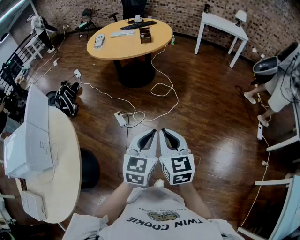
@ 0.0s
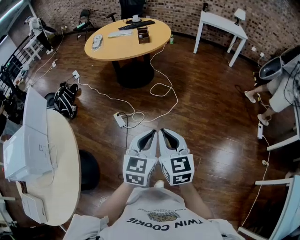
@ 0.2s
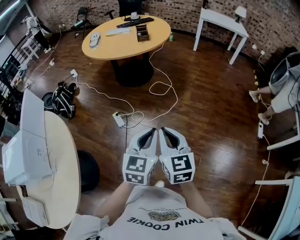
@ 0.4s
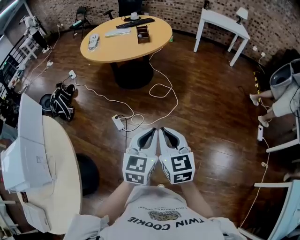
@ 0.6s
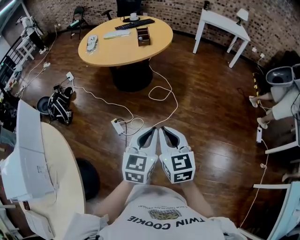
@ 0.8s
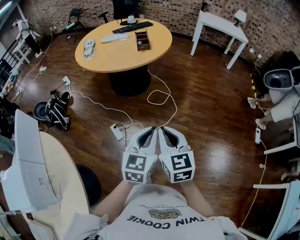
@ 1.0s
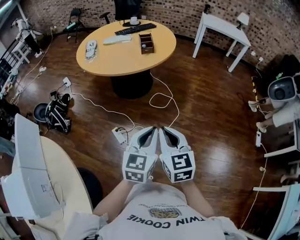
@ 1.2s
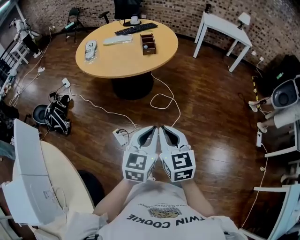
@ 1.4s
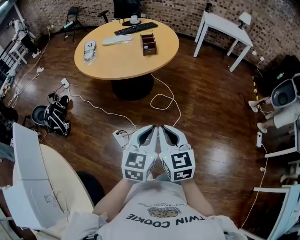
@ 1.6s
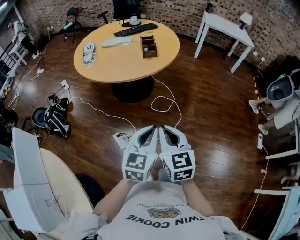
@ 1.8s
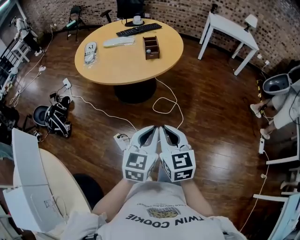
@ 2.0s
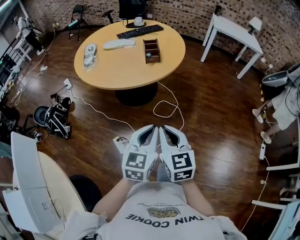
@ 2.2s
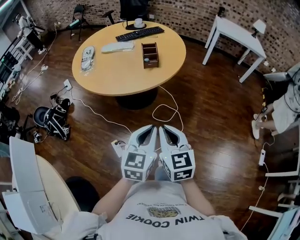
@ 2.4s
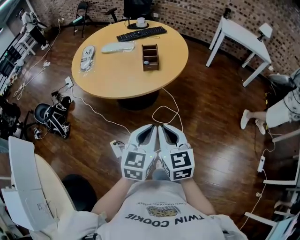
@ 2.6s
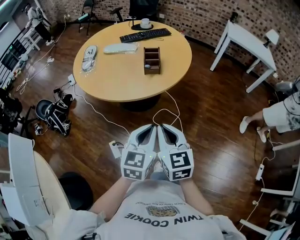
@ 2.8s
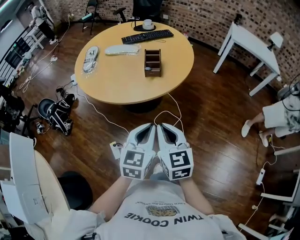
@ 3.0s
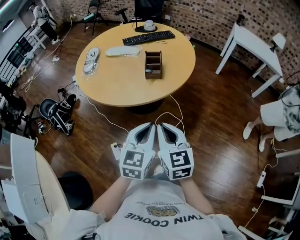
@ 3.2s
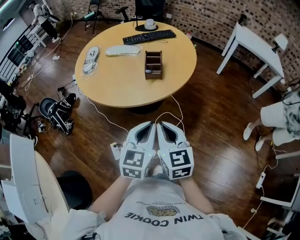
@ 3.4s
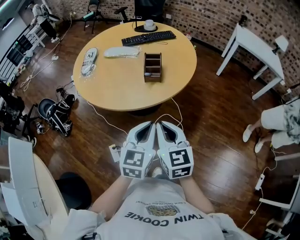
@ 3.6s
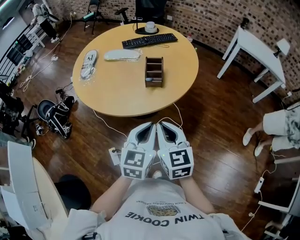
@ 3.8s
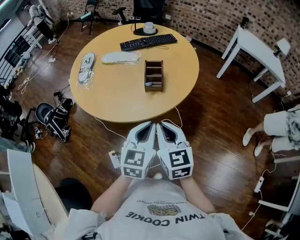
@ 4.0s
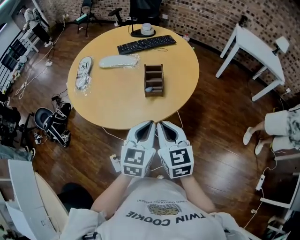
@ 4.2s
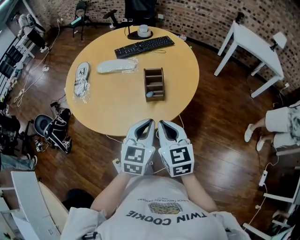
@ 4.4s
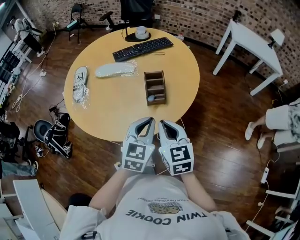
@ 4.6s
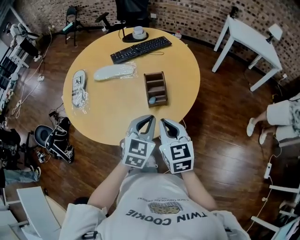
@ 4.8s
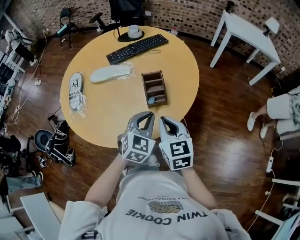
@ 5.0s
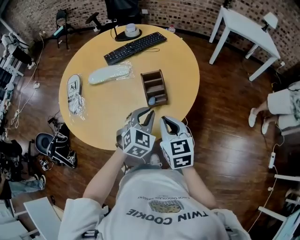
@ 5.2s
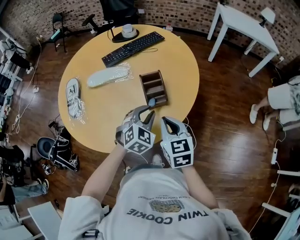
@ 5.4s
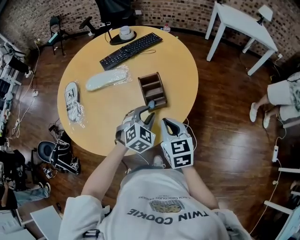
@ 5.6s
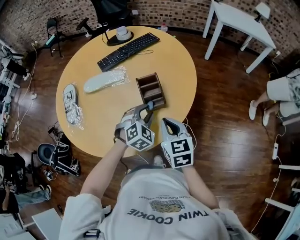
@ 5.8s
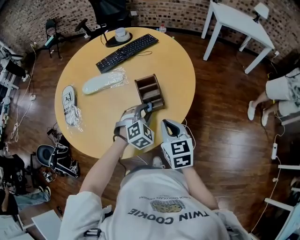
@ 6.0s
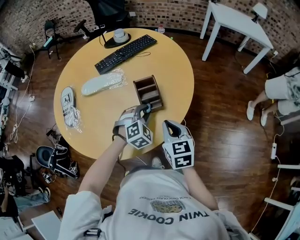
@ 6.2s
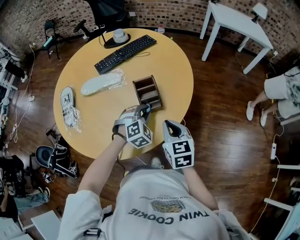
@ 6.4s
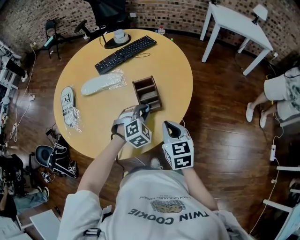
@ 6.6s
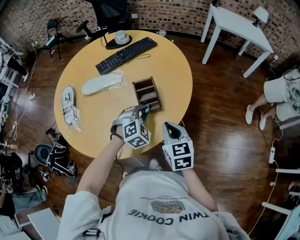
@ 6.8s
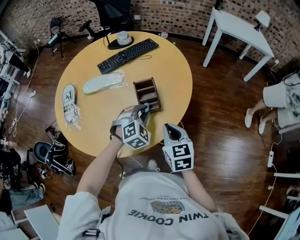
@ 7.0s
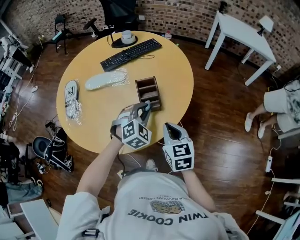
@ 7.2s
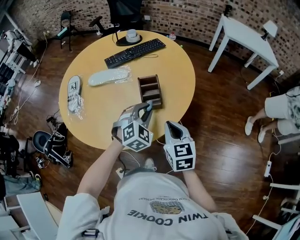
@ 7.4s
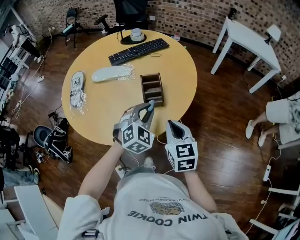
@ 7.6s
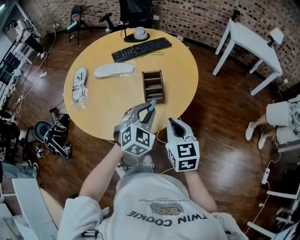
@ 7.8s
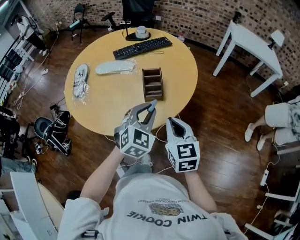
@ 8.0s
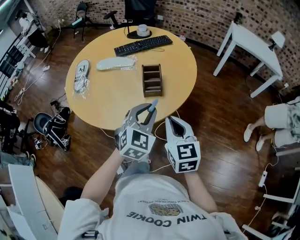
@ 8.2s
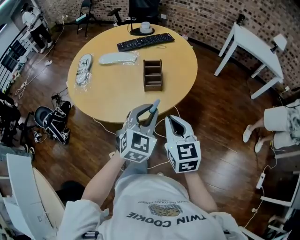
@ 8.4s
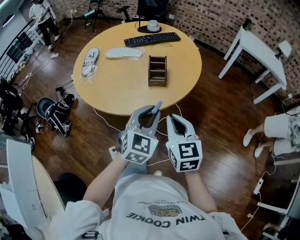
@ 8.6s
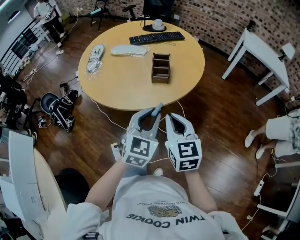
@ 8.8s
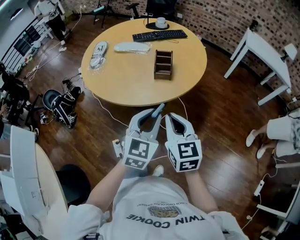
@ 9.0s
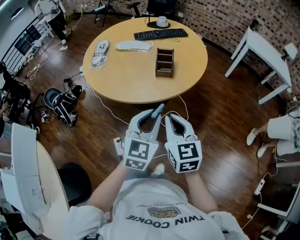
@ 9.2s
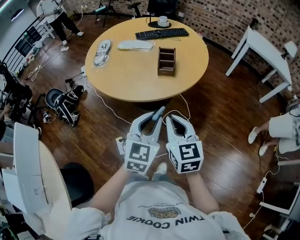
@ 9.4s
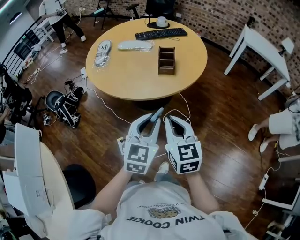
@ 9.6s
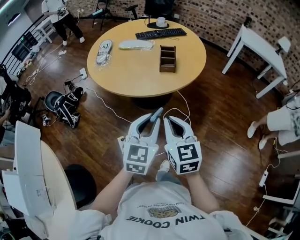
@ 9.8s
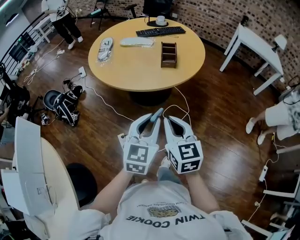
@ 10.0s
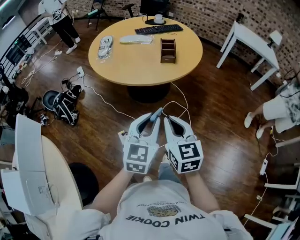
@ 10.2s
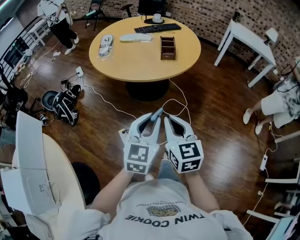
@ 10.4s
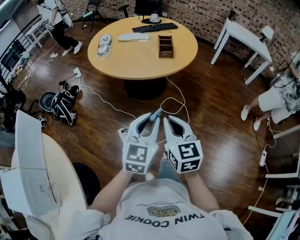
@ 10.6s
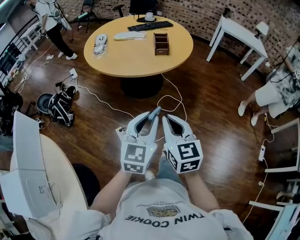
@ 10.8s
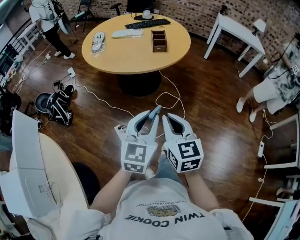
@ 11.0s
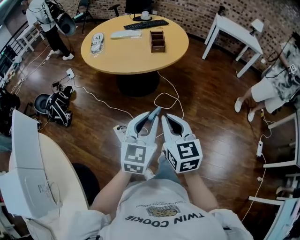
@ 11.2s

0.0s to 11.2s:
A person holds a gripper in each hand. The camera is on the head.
0.0s to 1.6s: The right gripper heads forward and to the left, covering about 35 cm, while the left gripper shifts roughly 30 cm forward.
1.6s to 3.2s: The grippers both shift forward by approximately 30 cm.
3.2s to 4.8s: Both grippers travel together forward, about 25 cm.
4.8s to 6.4s: The left gripper heads downward and forward, covering some 15 cm, and twists about 40 degrees clockwise, seen from behind. The right gripper is displaced downward and forward by roughly 10 cm.
6.4s to 8.0s: The right gripper shifts roughly 10 cm backward and upward. The left gripper goes about 20 cm upward and backward, and swivels about 30 degrees.
8.0s to 9.6s: The grippers both shift backward by about 20 cm. The left gripper changes its angle by some 30 degrees.
9.6s to 11.2s: The grippers both shift backward by approximately 25 cm.

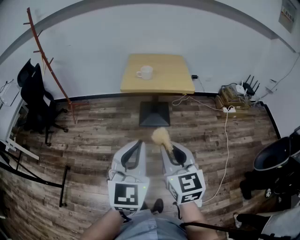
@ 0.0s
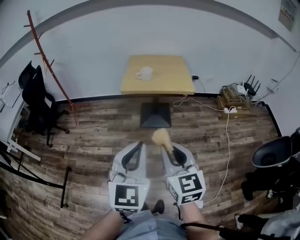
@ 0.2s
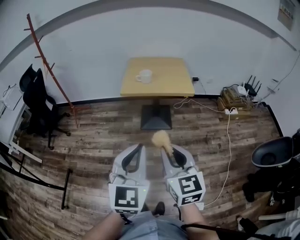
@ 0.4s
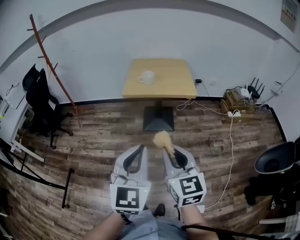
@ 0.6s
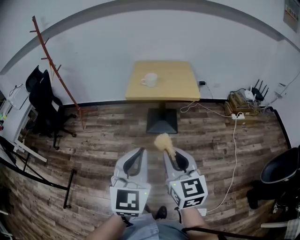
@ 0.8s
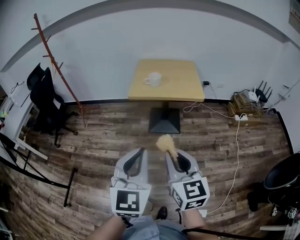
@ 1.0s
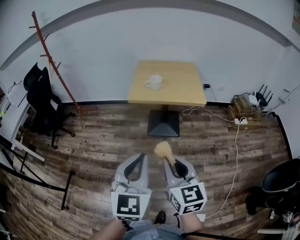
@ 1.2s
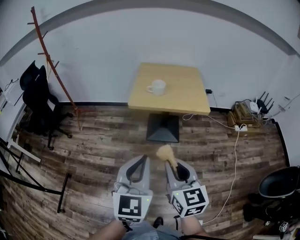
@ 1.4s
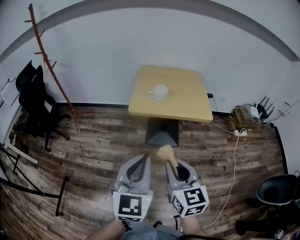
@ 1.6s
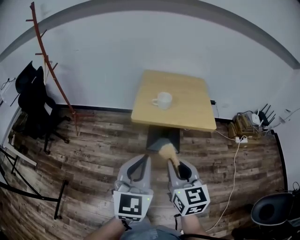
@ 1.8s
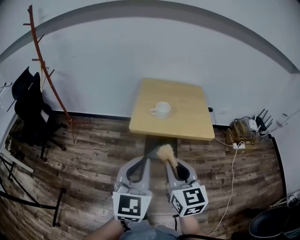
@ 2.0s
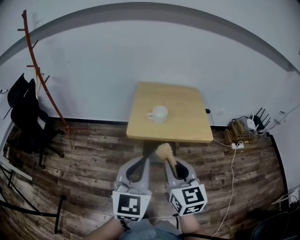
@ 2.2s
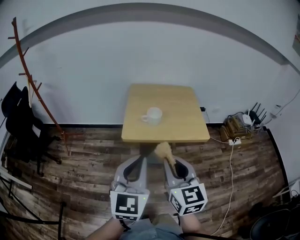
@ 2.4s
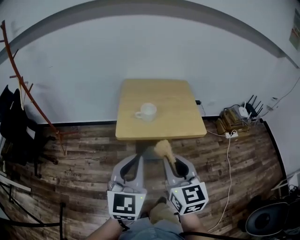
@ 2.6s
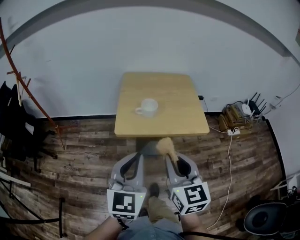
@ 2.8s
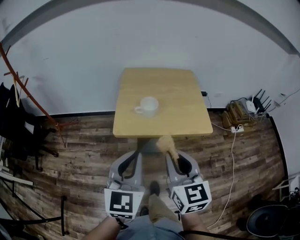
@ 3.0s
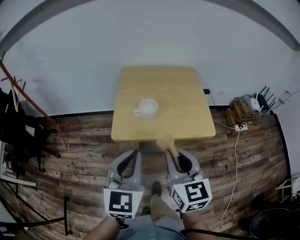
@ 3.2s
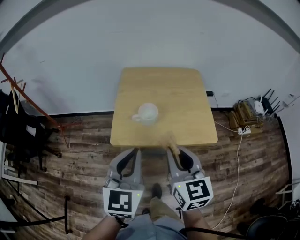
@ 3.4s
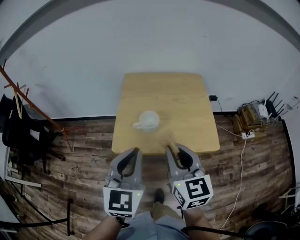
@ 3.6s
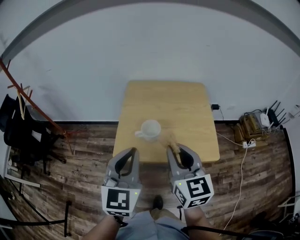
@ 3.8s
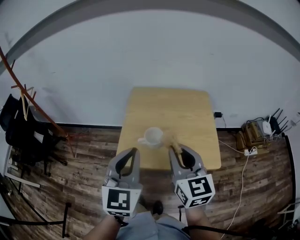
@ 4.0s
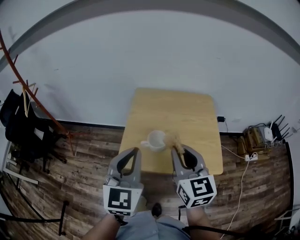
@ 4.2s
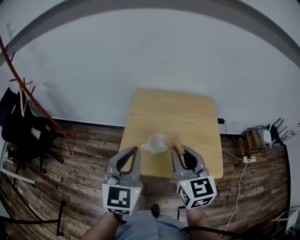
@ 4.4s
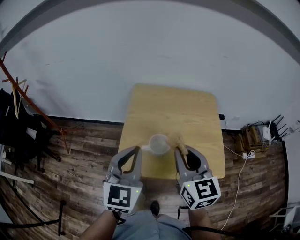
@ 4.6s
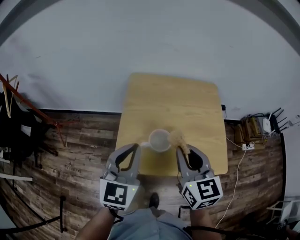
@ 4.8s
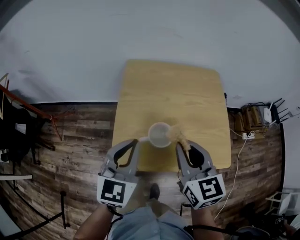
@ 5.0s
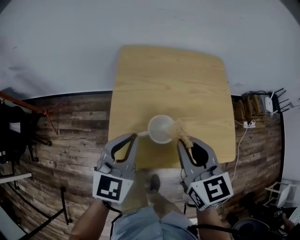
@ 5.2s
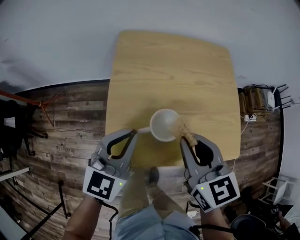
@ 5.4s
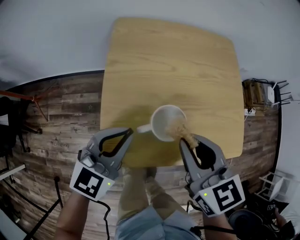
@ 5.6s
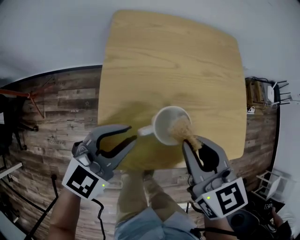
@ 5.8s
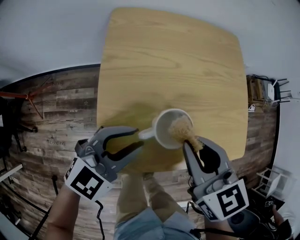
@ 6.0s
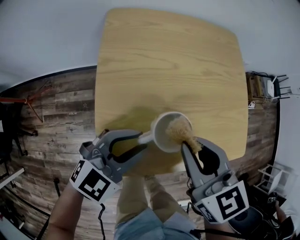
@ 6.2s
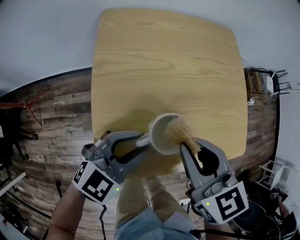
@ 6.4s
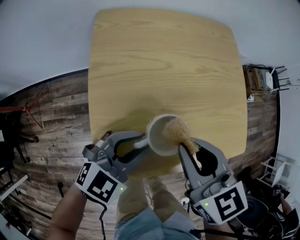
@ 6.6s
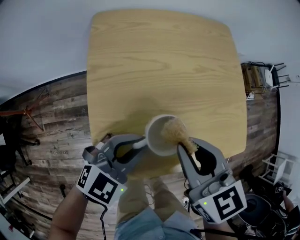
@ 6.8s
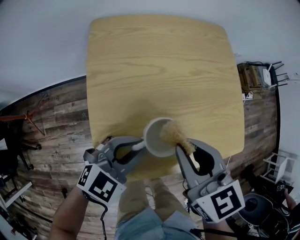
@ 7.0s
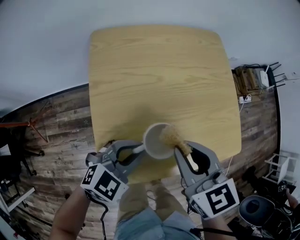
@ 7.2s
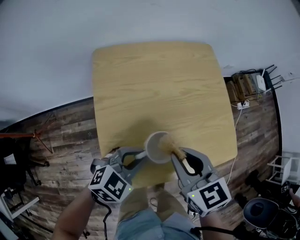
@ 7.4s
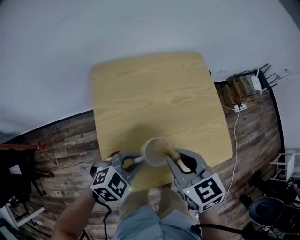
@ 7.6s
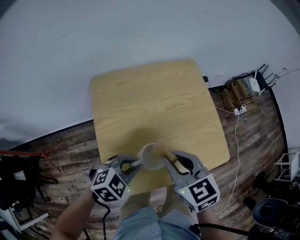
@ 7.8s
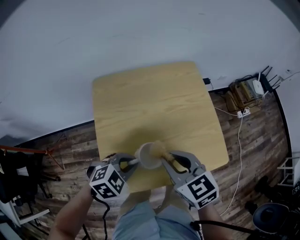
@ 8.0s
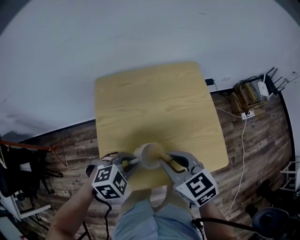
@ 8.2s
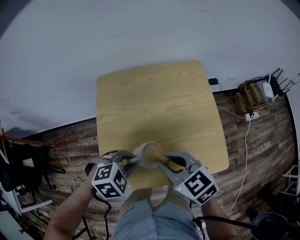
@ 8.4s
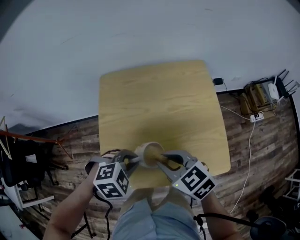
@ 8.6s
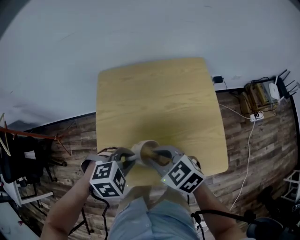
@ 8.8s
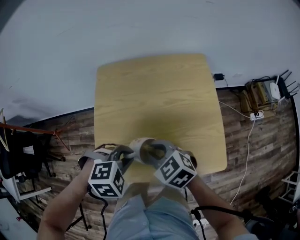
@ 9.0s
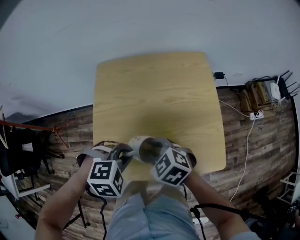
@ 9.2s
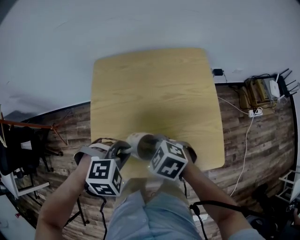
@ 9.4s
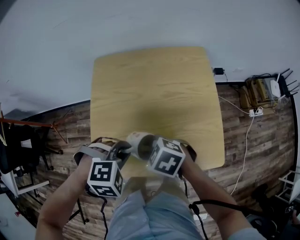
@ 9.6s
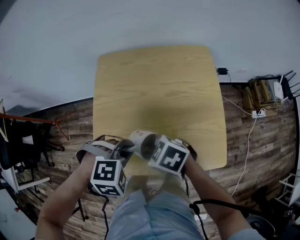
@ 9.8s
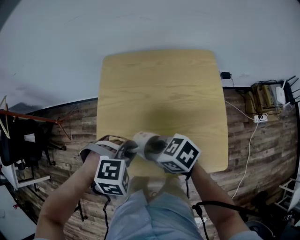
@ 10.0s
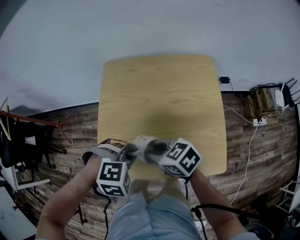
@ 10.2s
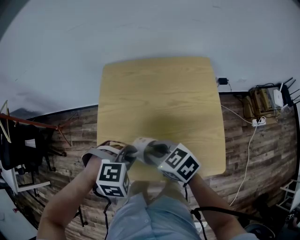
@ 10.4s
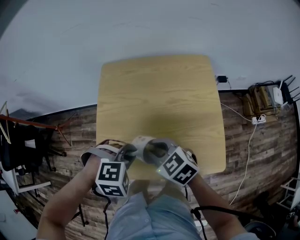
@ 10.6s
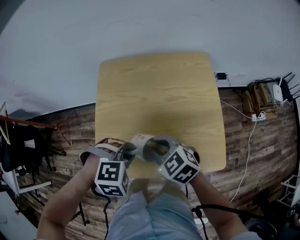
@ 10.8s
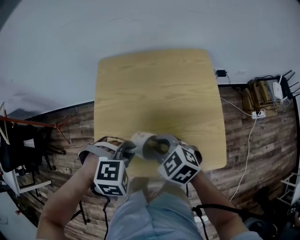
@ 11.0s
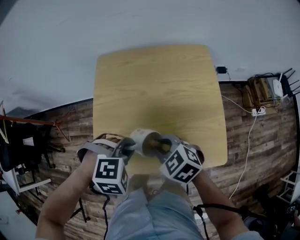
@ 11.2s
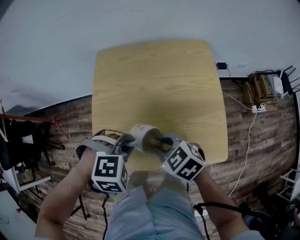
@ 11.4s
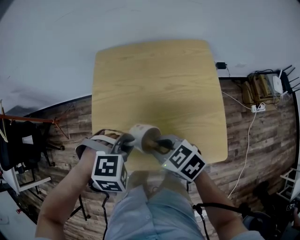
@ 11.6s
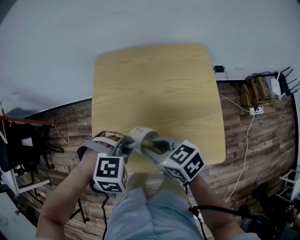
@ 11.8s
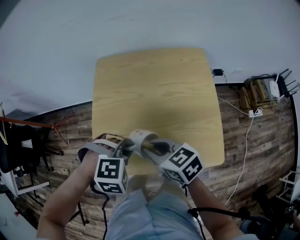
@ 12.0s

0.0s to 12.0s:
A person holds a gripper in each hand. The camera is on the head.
0.0s to 1.6s: Both grippers move forward, roughly 20 cm.
1.6s to 3.0s: Both grippers travel together forward, some 20 cm.
3.0s to 4.4s: Both grippers move forward, about 20 cm.
4.4s to 6.0s: The grippers both shift downward by roughly 20 cm. The left gripper turns by some 50 degrees, and opens; the right gripper swivels roughly 20 degrees.
6.0s to 7.6s: The left gripper swivels some 30 degrees.
7.6s to 9.0s: The left gripper changes place by approximately 5 cm, and rotates some 30 degrees. The right gripper travels downward by approximately 5 cm, and turns by roughly 40 degrees.

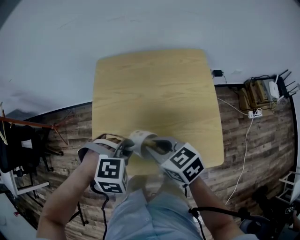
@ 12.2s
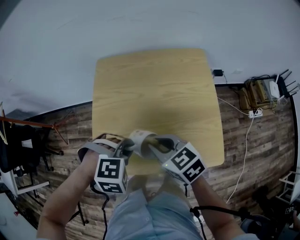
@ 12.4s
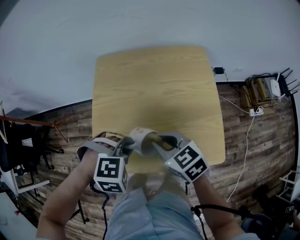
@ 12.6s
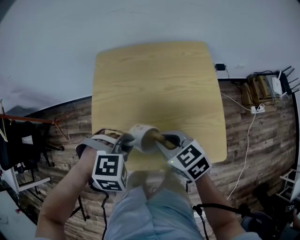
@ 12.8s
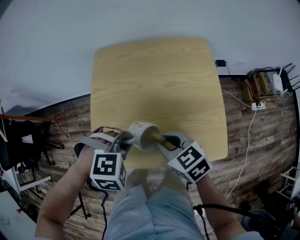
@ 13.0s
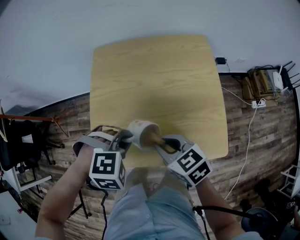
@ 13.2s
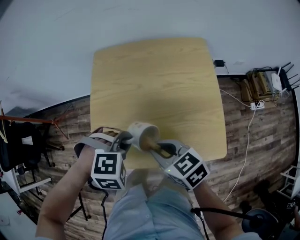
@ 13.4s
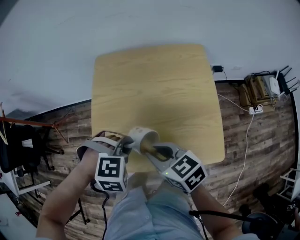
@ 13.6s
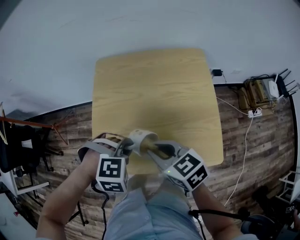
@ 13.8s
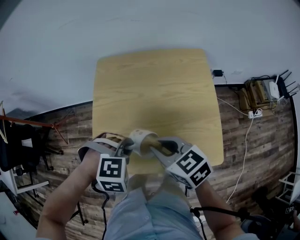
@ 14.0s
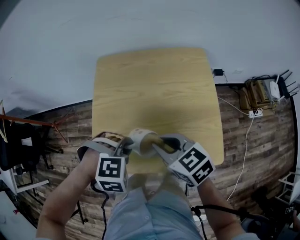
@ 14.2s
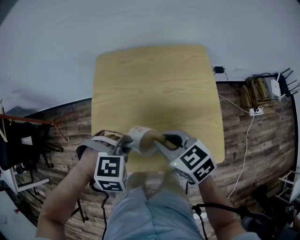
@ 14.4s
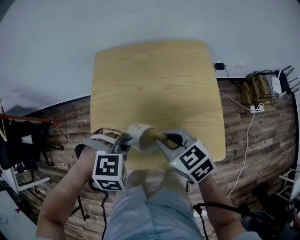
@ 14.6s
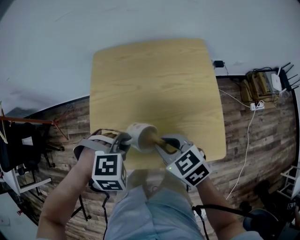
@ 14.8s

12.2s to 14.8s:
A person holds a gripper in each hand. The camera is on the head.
12.2s to 14.8s: The grippers move only a little.
